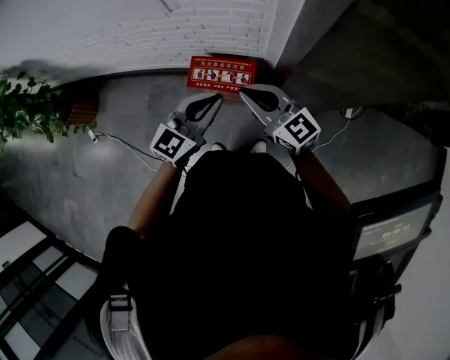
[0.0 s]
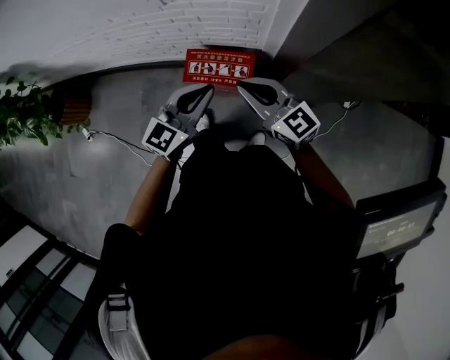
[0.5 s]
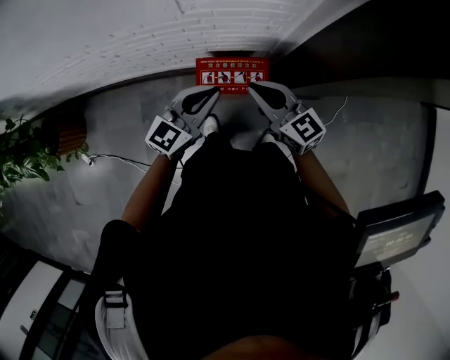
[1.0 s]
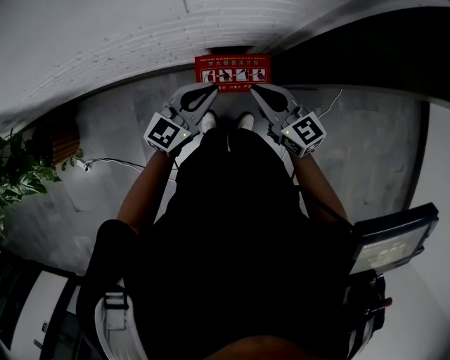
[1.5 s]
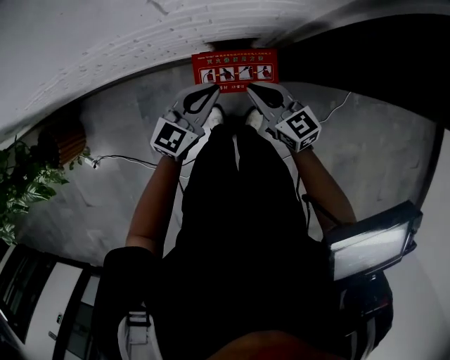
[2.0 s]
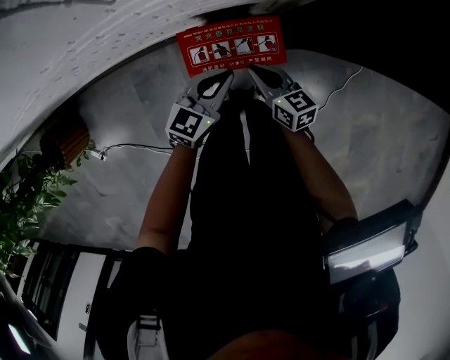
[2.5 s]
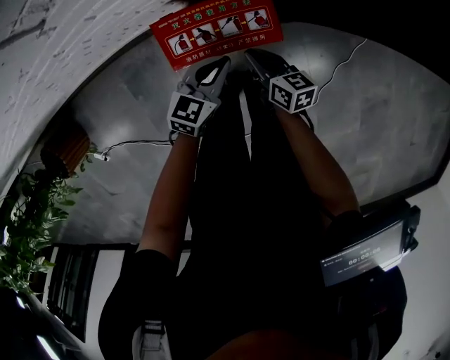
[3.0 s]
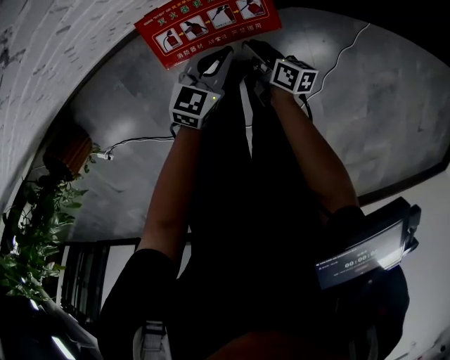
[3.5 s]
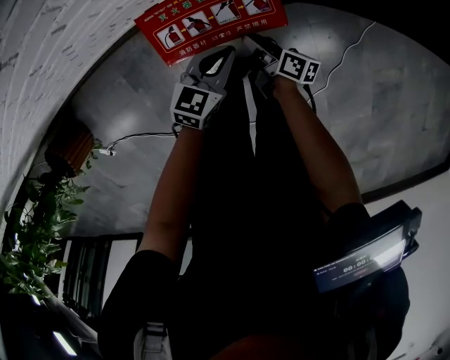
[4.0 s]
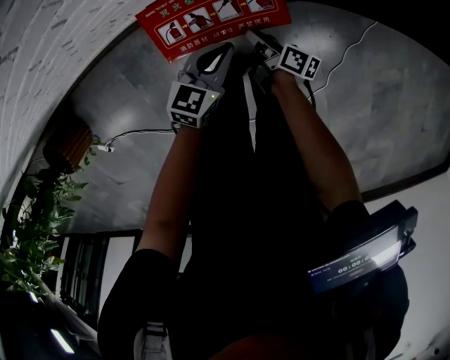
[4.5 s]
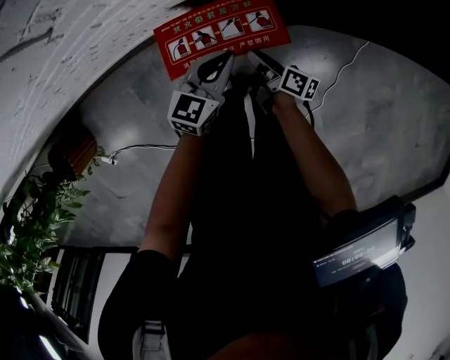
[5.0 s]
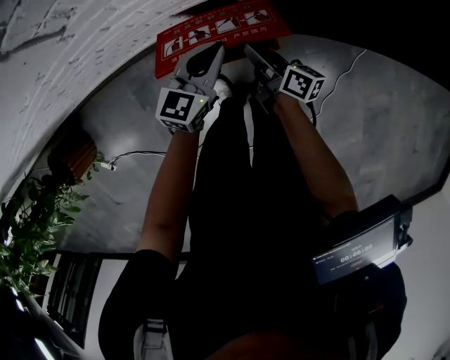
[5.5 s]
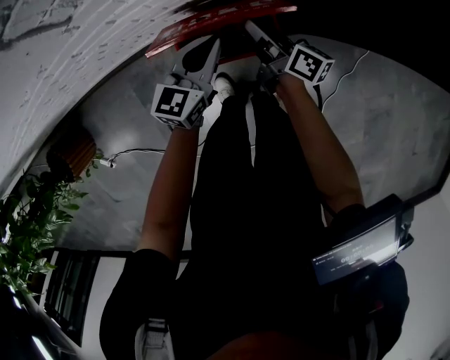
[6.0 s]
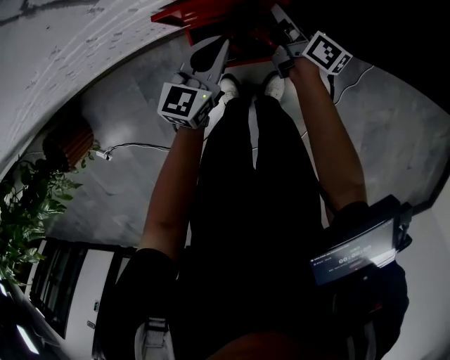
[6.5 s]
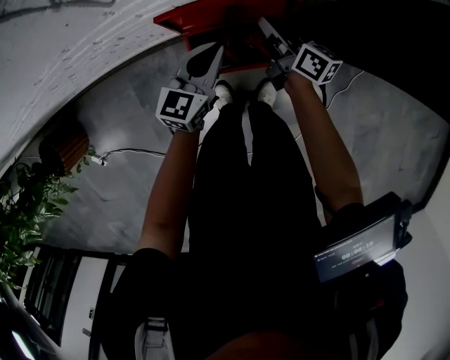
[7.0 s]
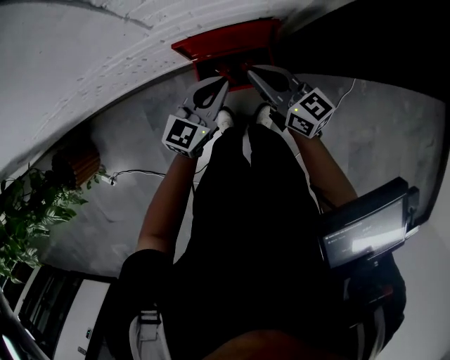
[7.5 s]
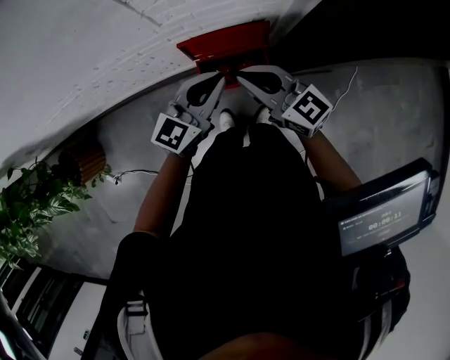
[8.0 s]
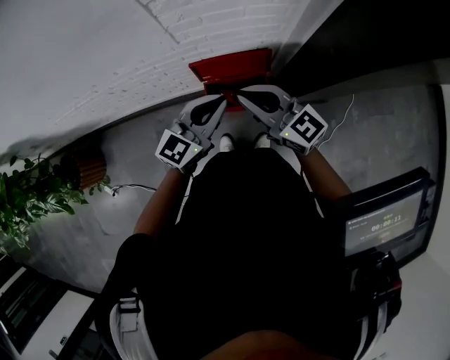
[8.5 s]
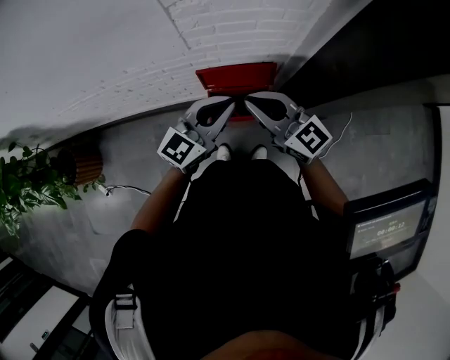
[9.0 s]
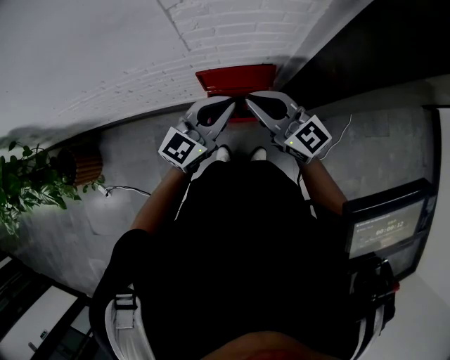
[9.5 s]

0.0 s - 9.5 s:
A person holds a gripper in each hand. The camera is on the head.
0.0 s - 2.0 s: The left gripper goes some 30 cm forward, downward and to the left. The right gripper goes roughly 30 cm downward, forward and to the left, and rotates some 30 degrees.
2.0 s - 4.0 s: The grippers both shift downward by roughly 35 cm. The right gripper rolls clockwise, seen from behind, by roughly 70 degrees, and opens its fingers; the left gripper swivels approximately 20 degrees.
4.0 s - 5.5 s: The two grippers go some 15 cm upward and forward. The right gripper closes.
5.5 s - 7.5 s: The right gripper heads upward, covering about 25 cm, and rolls counterclockwise, seen from behind, by approximately 40 degrees, while the left gripper heads upward, covering roughly 15 cm.
7.5 s - 9.5 s: The two grippers go roughly 20 cm upward. The right gripper rotates roughly 30 degrees.

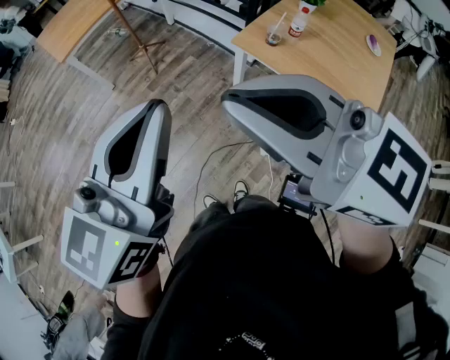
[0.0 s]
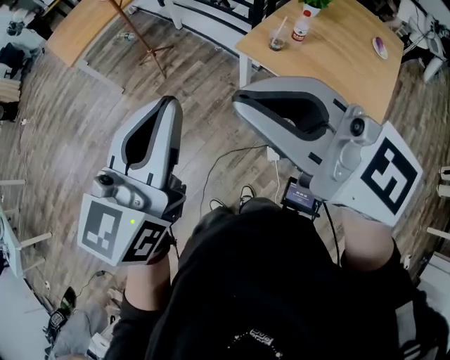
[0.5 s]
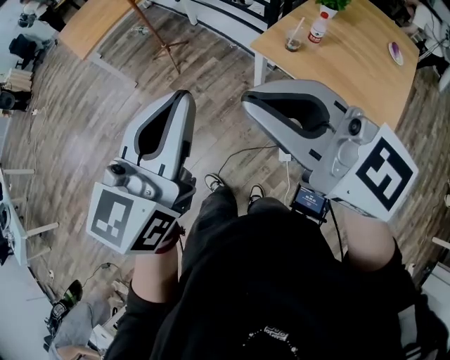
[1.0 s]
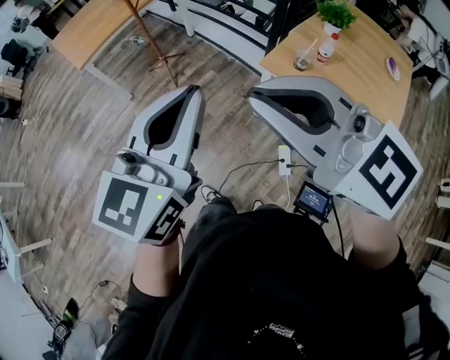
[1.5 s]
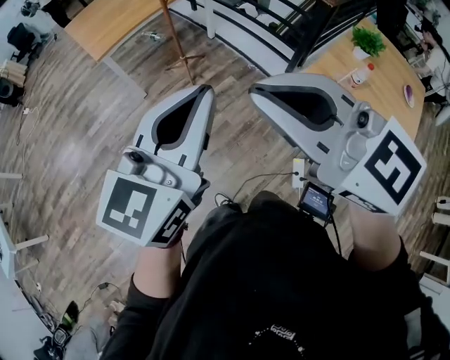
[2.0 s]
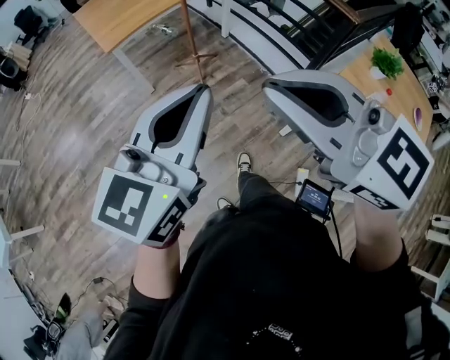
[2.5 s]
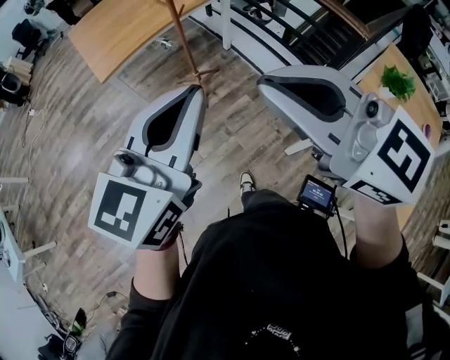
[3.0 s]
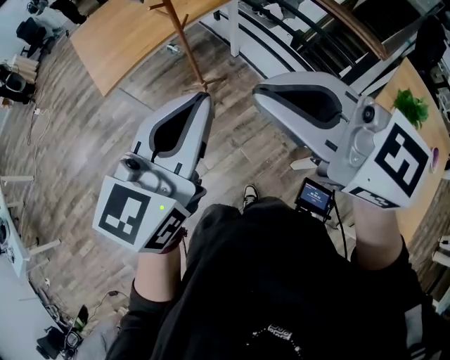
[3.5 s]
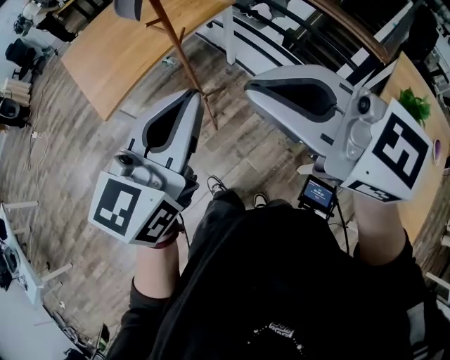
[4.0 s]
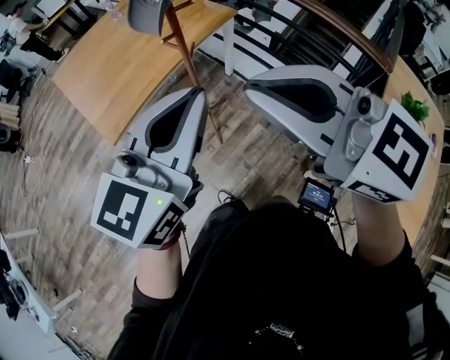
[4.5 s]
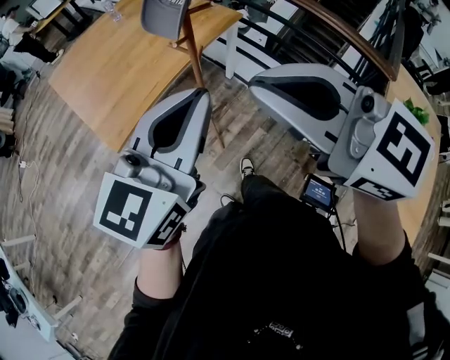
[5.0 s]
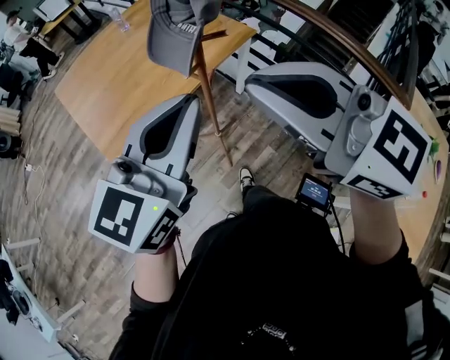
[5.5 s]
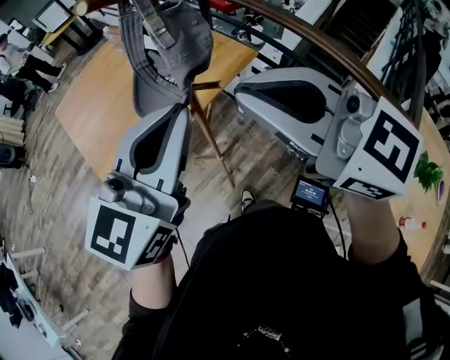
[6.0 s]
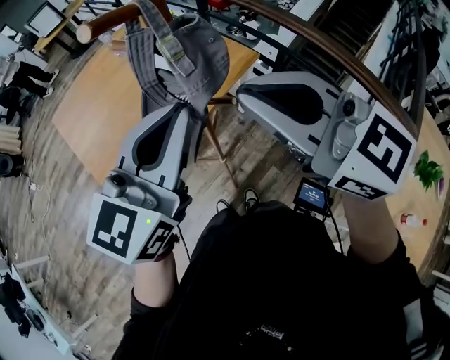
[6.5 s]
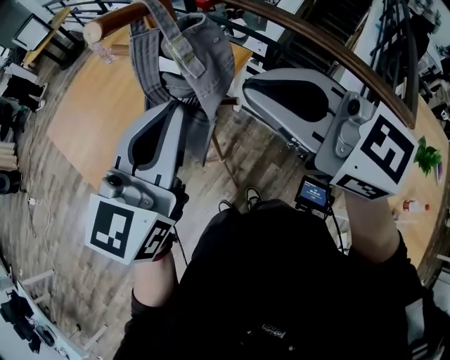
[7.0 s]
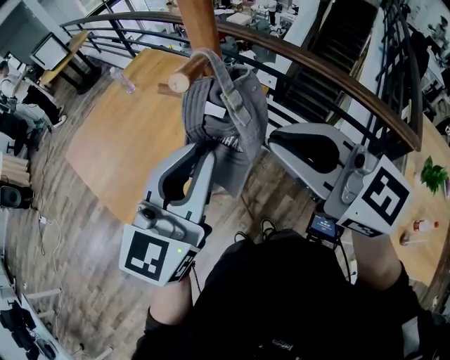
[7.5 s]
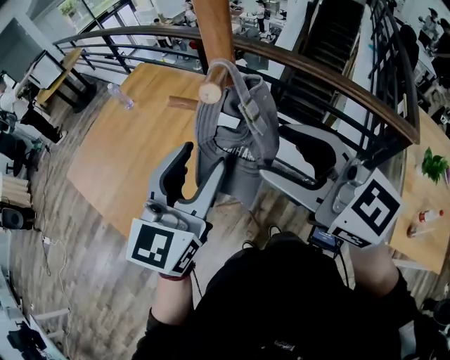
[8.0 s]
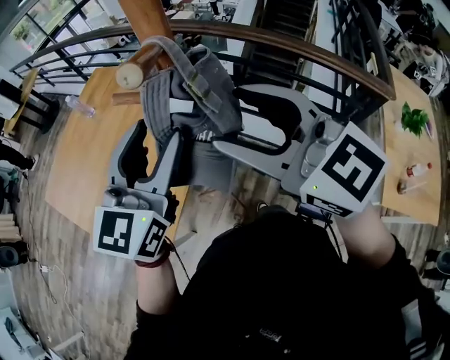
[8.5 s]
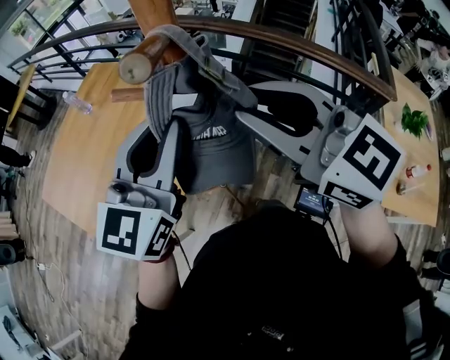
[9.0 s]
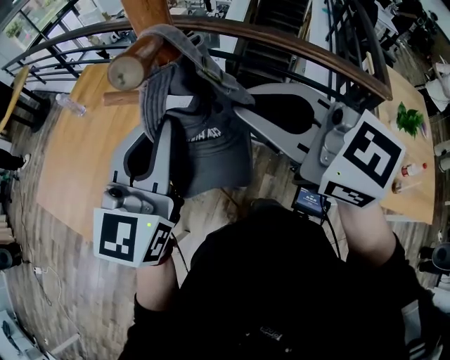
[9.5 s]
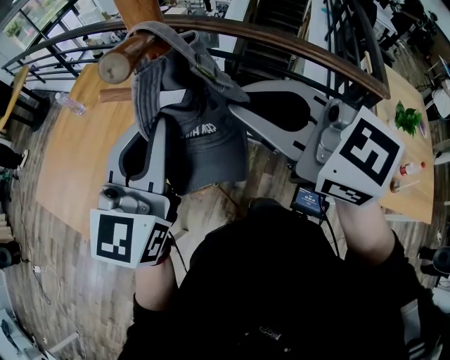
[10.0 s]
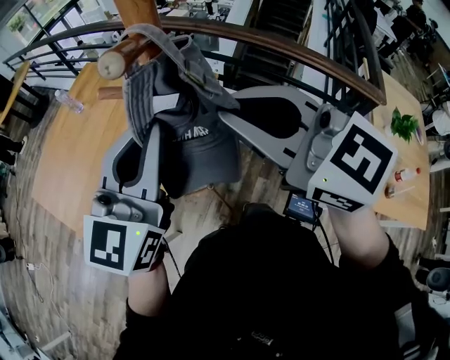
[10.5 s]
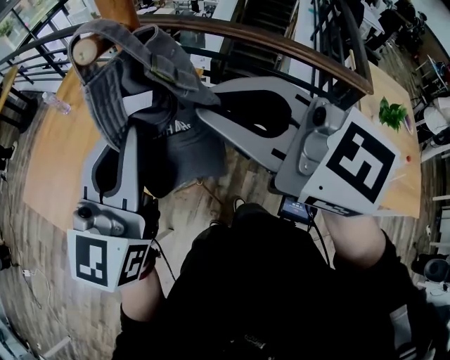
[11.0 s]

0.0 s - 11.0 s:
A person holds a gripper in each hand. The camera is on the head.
0.0 s - 2.0 s: Both grippers travel together forward and to the left, approximately 20 cm.
2.0 s - 3.5 s: The grippers both shift forward by approximately 30 cm.
3.5 s - 5.5 s: Both grippers move forward and to the left, approximately 35 cm.
5.5 s - 7.5 s: Both grippers travel together forward, approximately 15 cm.
7.5 s - 9.0 s: The right gripper opens and closes again, while the left gripper shifts roughly 5 cm forward, and opens, then closes again.
9.0 s - 11.0 s: The grippers make only small movements.

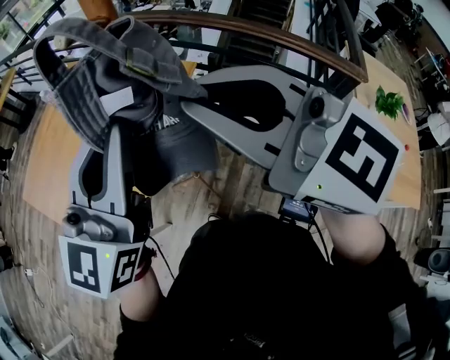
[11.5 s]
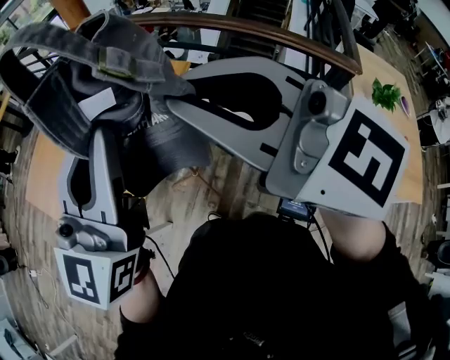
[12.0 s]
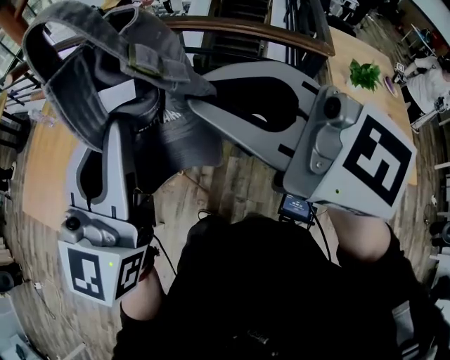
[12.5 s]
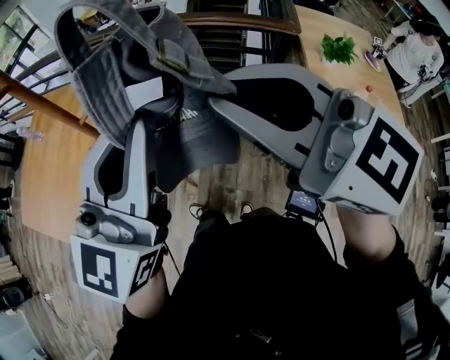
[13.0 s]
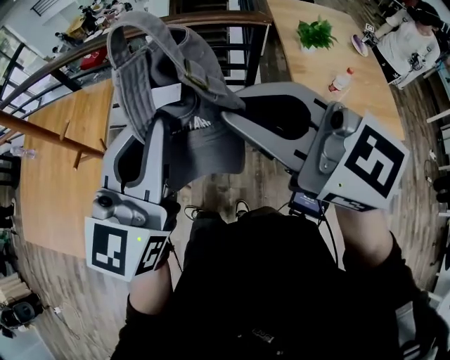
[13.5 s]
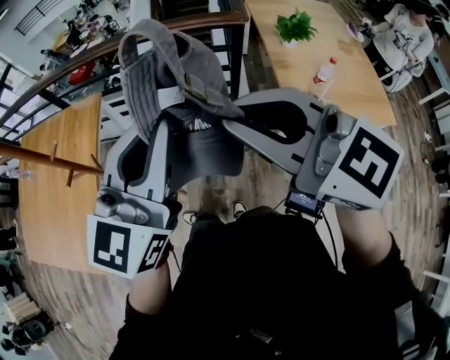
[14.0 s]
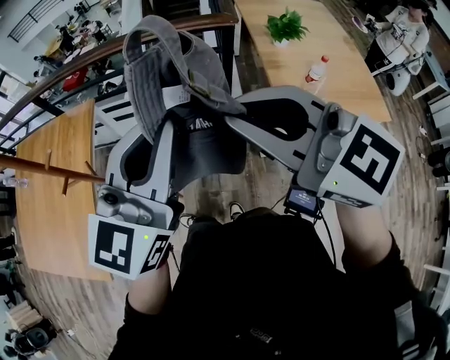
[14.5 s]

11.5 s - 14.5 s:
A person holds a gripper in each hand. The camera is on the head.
11.5 s - 13.0 s: The grippers move only a little.
13.0 s - 14.5 s: Both grippers move to the right and downward, about 15 cm.

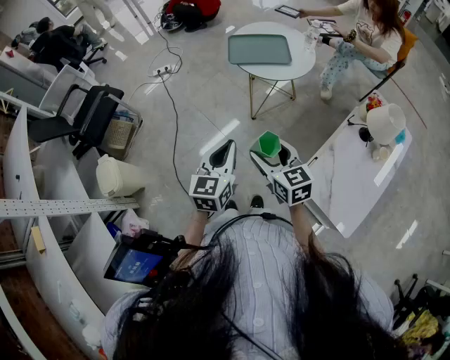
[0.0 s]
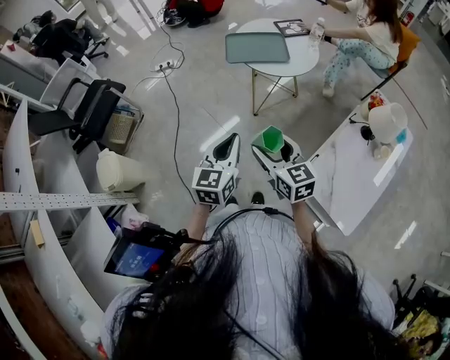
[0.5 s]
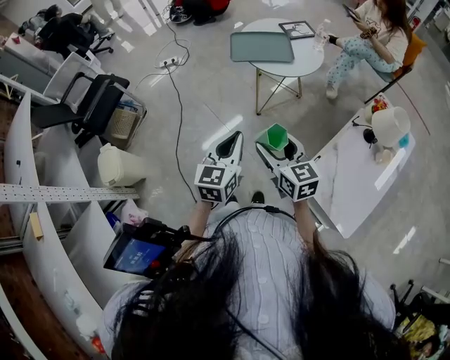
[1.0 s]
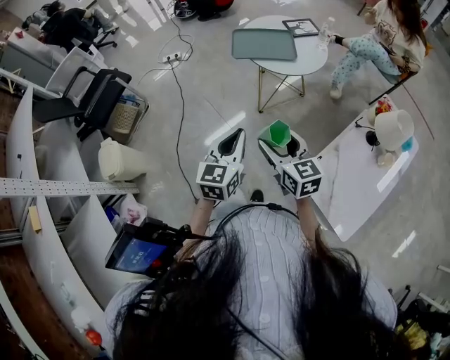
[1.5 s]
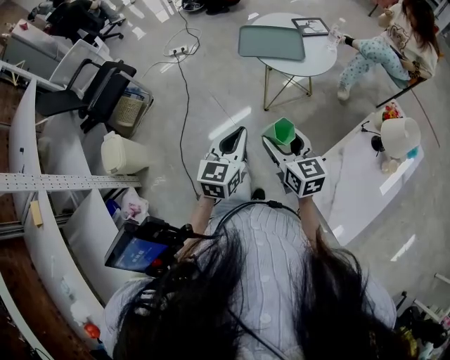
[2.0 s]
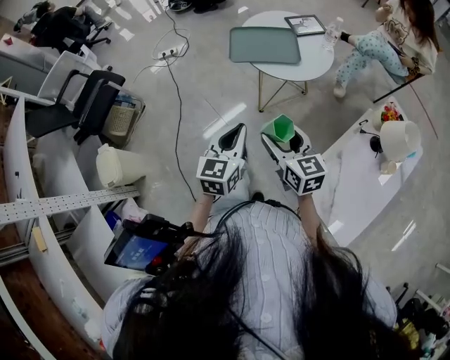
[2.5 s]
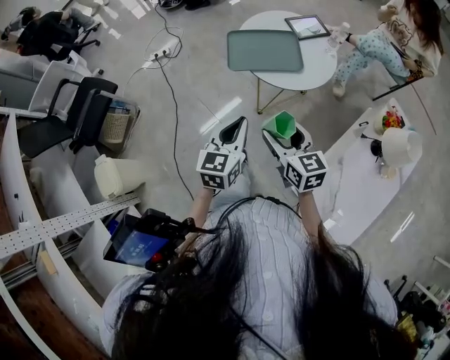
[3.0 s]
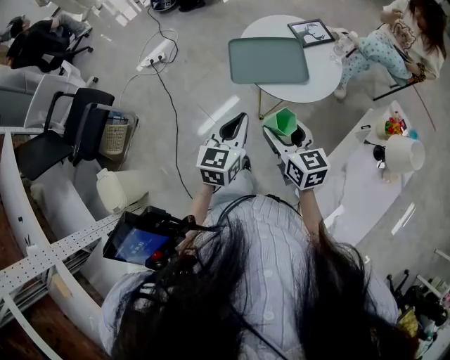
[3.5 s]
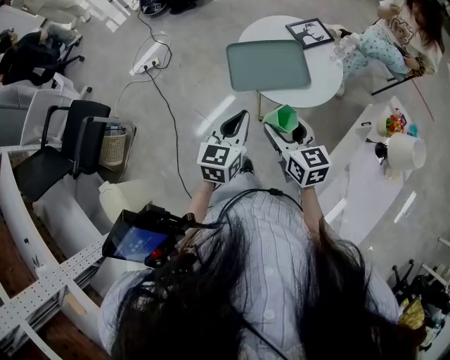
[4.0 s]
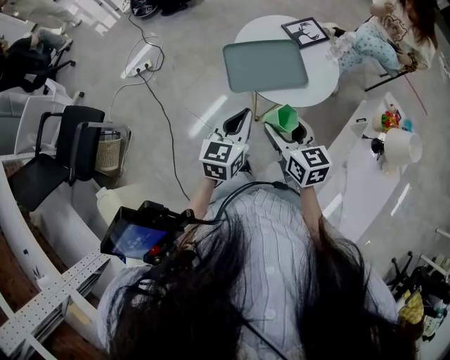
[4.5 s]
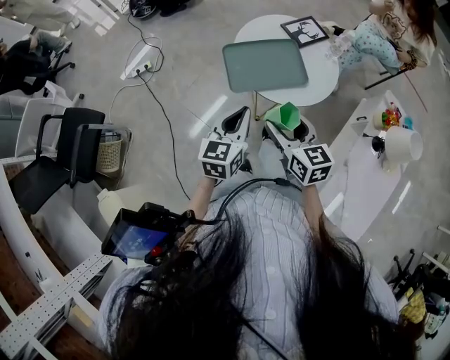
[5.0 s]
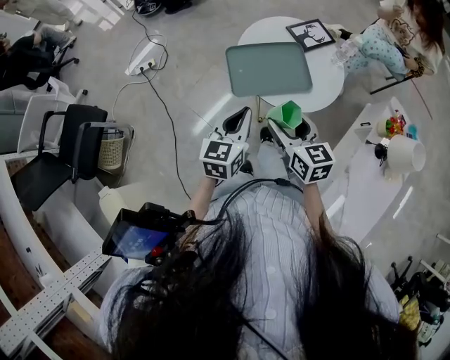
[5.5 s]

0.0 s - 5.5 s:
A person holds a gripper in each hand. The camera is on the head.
0.0 s - 2.0 s: The grippers make only small movements.
2.0 s - 3.5 s: The two grippers go about 25 cm forward.
3.5 s - 5.5 s: Both grippers move forward, approximately 10 cm.
